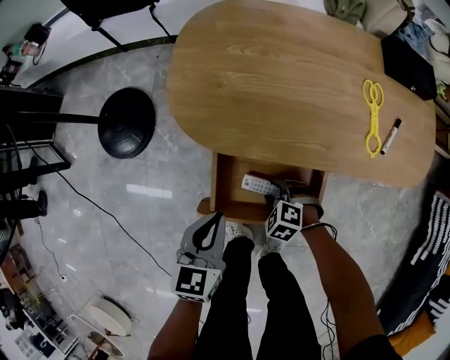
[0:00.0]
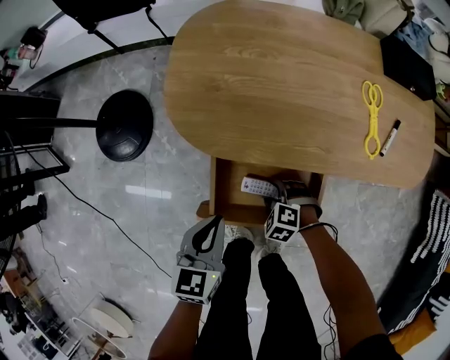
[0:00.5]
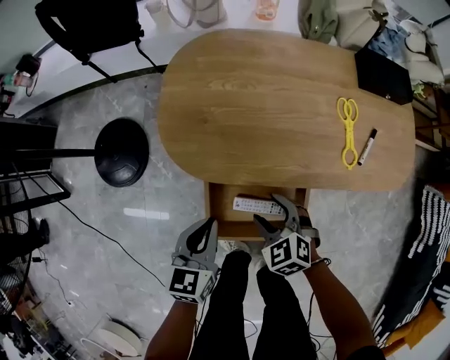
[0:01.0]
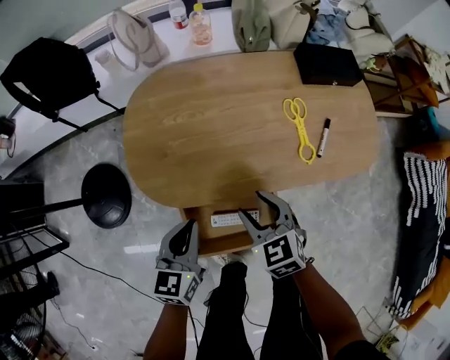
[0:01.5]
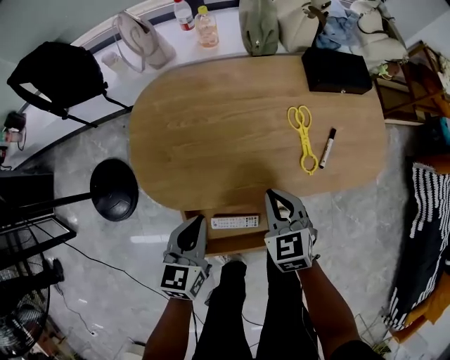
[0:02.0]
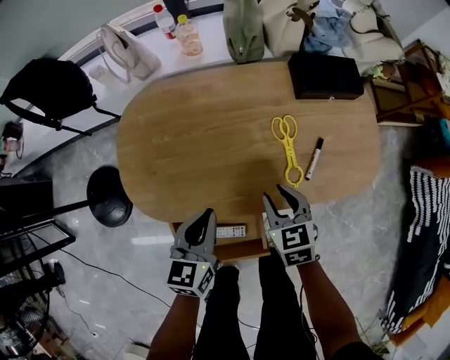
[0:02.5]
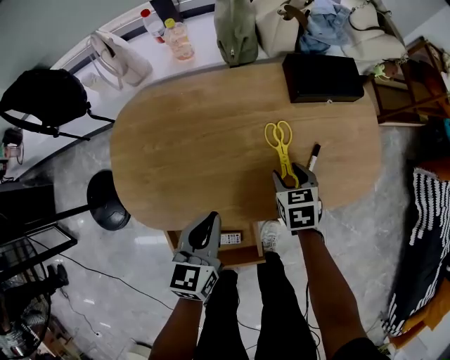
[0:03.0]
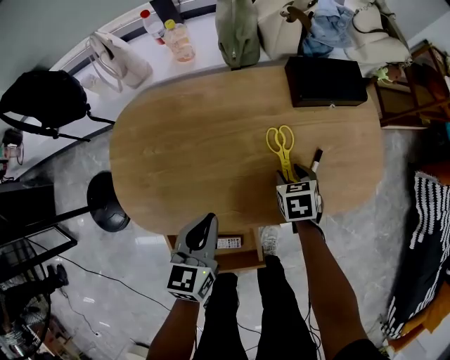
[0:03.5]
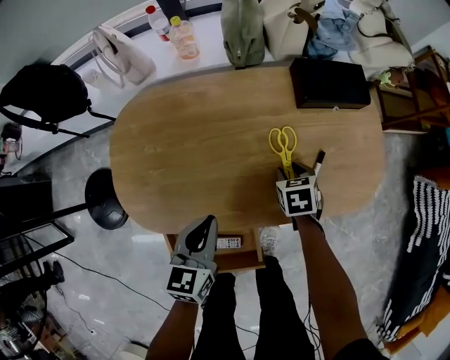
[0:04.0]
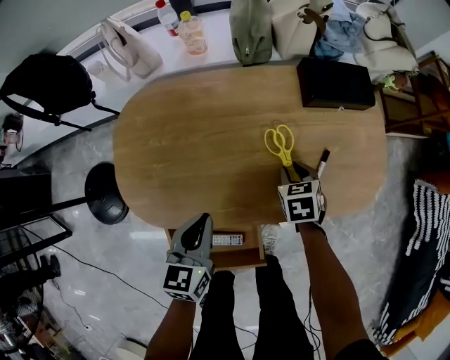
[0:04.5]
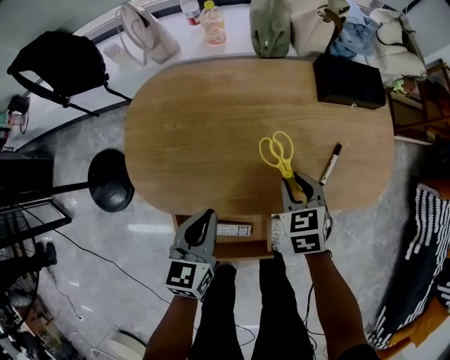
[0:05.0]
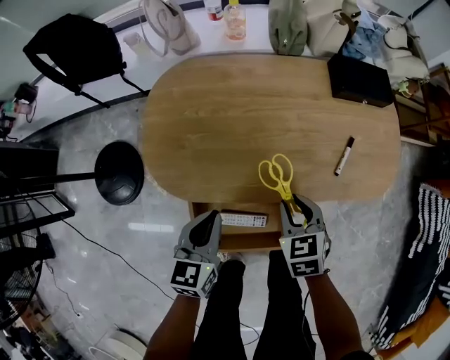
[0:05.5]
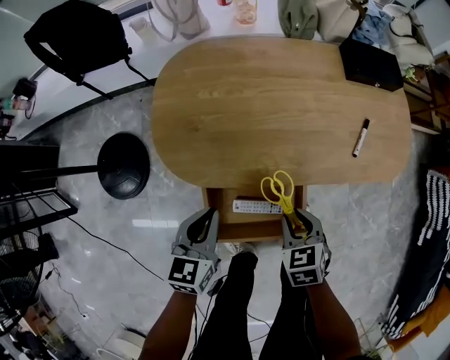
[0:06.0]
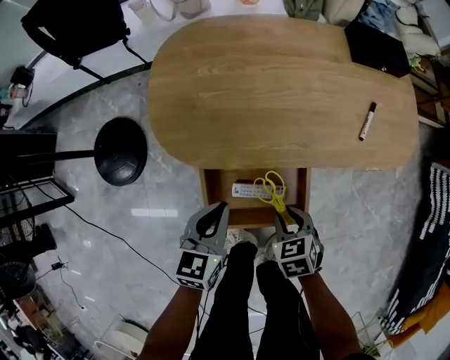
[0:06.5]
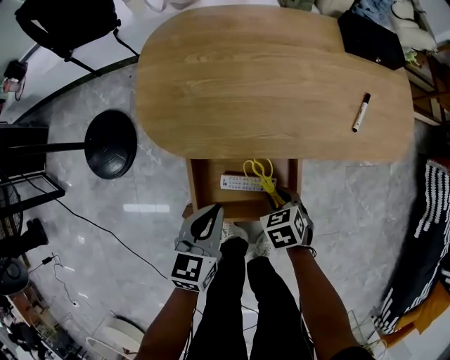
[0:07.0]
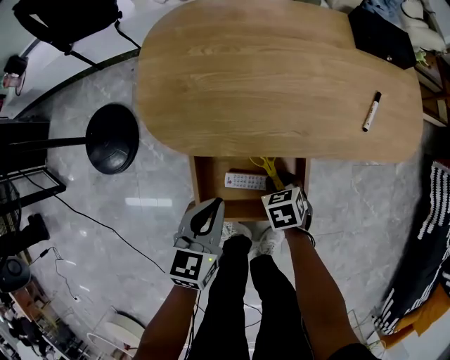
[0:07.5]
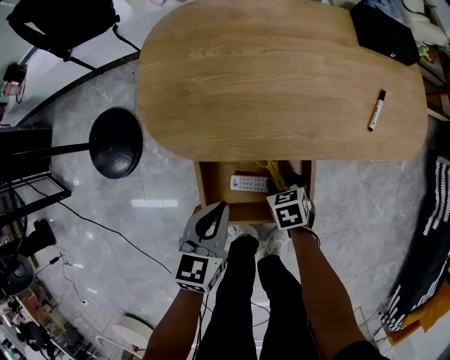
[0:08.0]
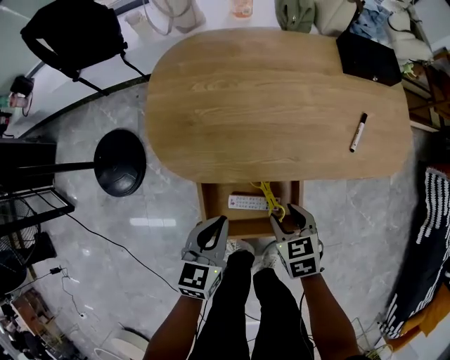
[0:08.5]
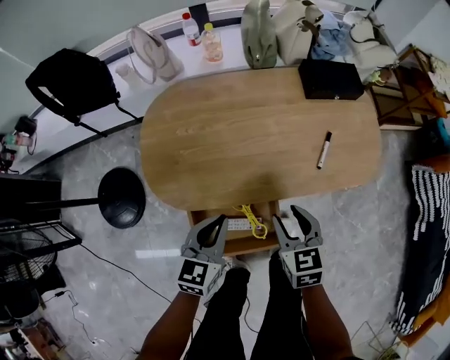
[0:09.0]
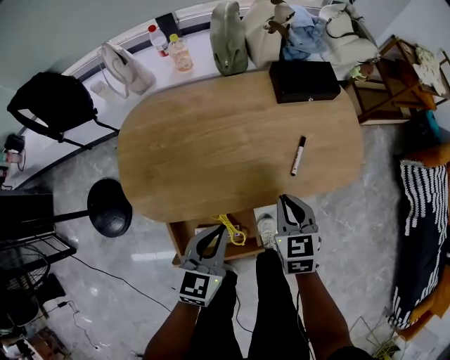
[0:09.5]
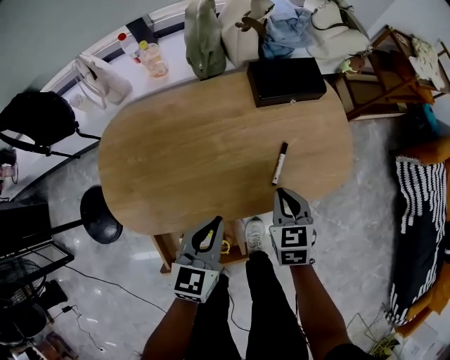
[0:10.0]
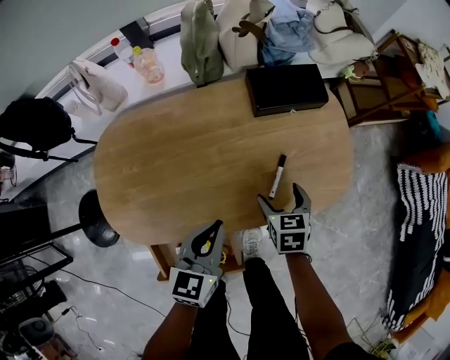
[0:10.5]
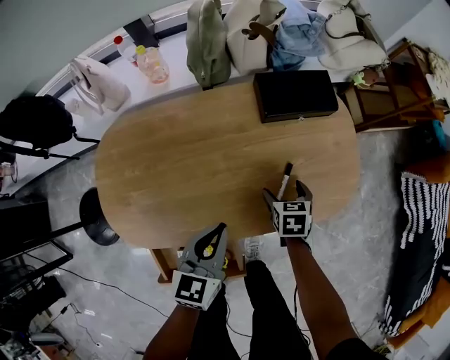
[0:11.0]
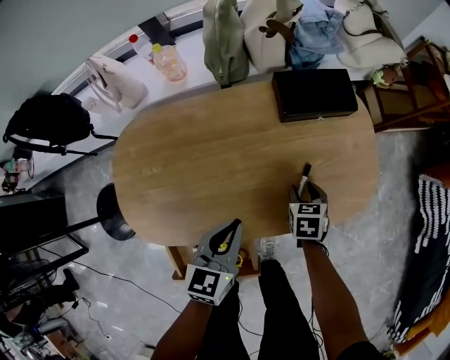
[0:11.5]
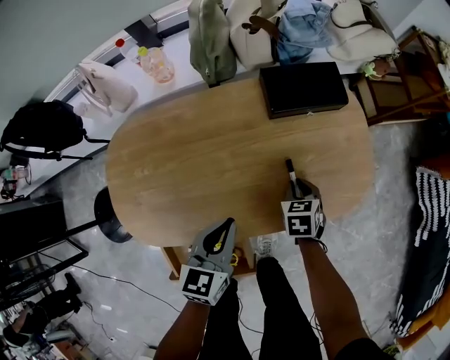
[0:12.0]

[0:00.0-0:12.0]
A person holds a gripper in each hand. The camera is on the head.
0:00.0 to 0:02.0: The left gripper shifts by roughly 20 cm. Meanwhile the right gripper heads upward, covering roughly 25 cm, tilts its fingers some 30 degrees upward, and closes.
0:02.0 to 0:04.0: The right gripper travels forward, to the right and downward by roughly 25 cm, and swivels about 30 degrees. Meanwhile the left gripper moves to the right and forward, approximately 15 cm.
0:04.0 to 0:06.0: The left gripper heads to the left and backward, covering roughly 20 cm. The right gripper moves backward and to the left, some 30 cm.
0:06.0 to 0:08.0: The right gripper heads downward, covering some 15 cm. The left gripper travels downward and backward by some 10 cm.
0:08.0 to 0:10.0: The right gripper heads upward, to the right and forward, covering about 40 cm, and rotates approximately 30 degrees; the left gripper travels to the right, forward and upward by roughly 30 cm.
0:10.0 to 0:12.0: The right gripper travels downward and forward by approximately 15 cm, and opens and closes again. The left gripper is displaced forward by some 5 cm.

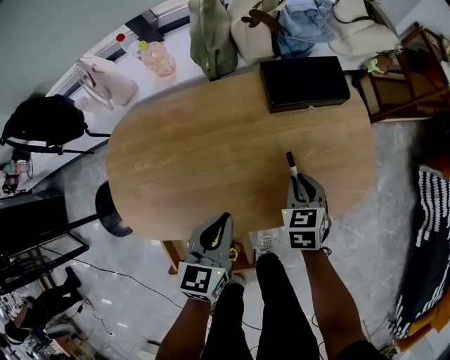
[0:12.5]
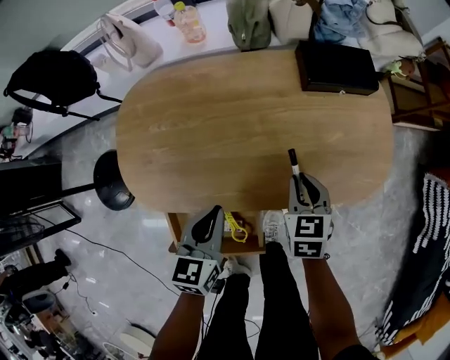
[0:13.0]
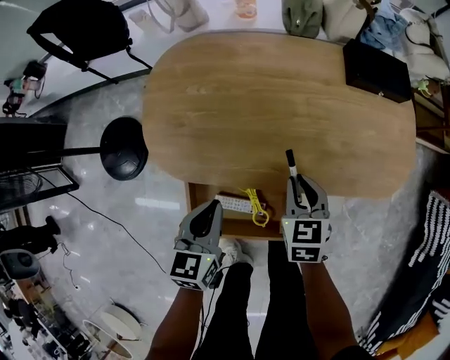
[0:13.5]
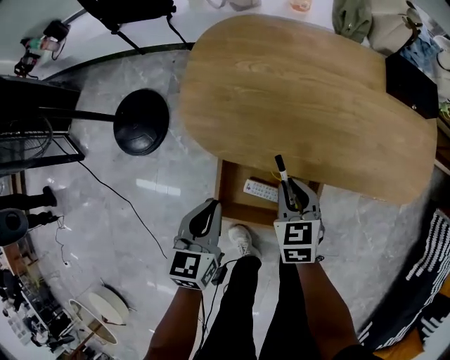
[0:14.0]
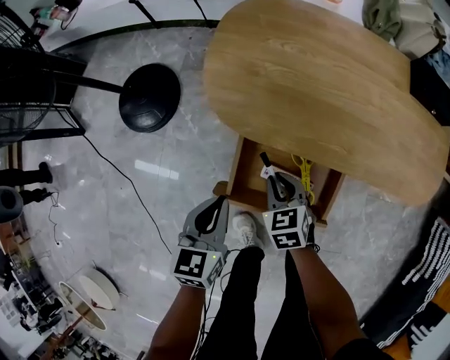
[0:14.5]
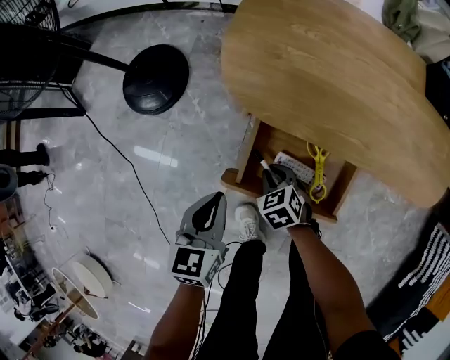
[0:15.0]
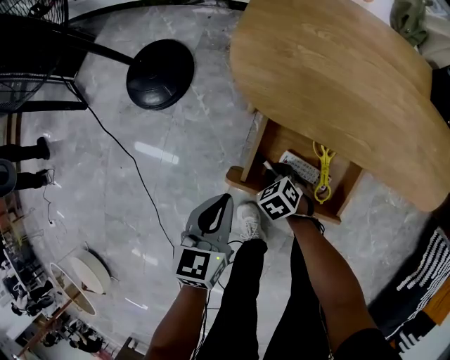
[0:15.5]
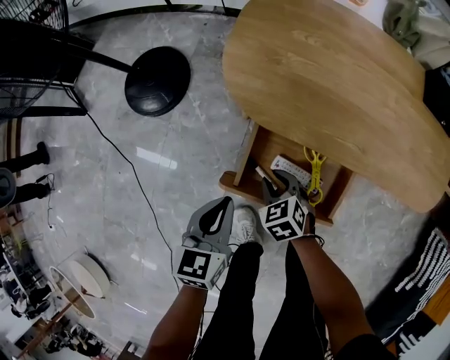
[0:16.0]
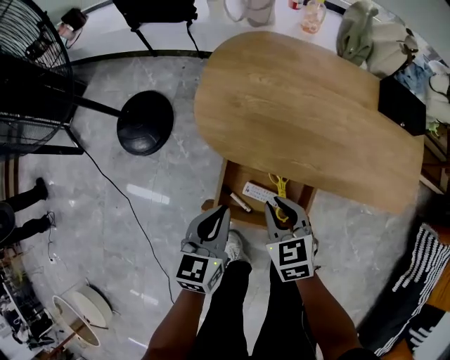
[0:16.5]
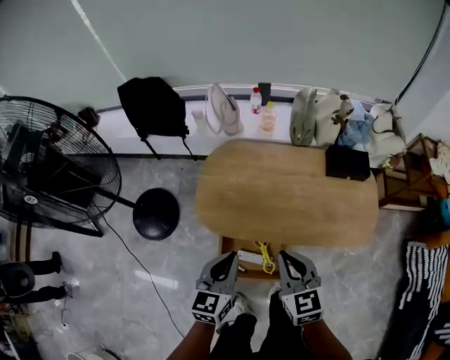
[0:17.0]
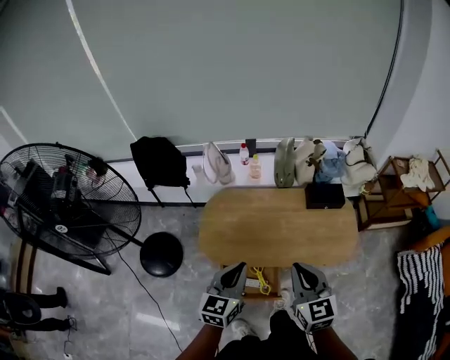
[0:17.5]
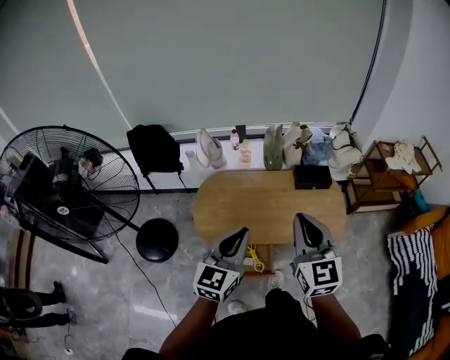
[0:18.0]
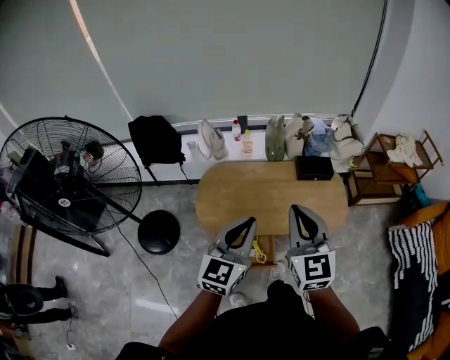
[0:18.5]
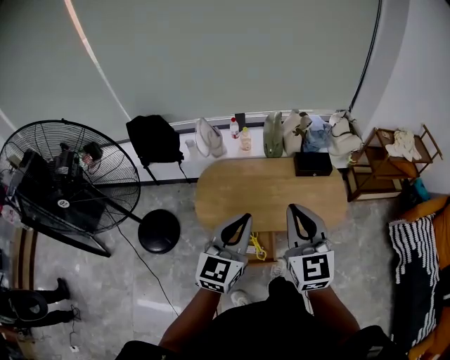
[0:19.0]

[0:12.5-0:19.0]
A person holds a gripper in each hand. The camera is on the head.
0:12.5 to 0:14.5: The two grippers travel together, about 50 cm. The right gripper swivels approximately 40 degrees; the left gripper turns by about 30 degrees.
0:14.5 to 0:17.0: The left gripper shifts some 30 cm upward and to the right. Meanwhile the right gripper is displaced upward by approximately 40 cm, and swivels approximately 30 degrees.
0:17.0 to 0:19.0: The two grippers go some 25 cm upward. The right gripper changes its angle by about 30 degrees; the left gripper rotates roughly 30 degrees.

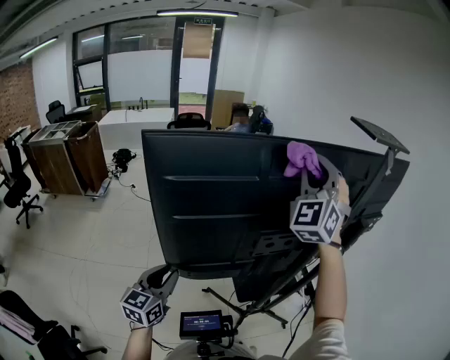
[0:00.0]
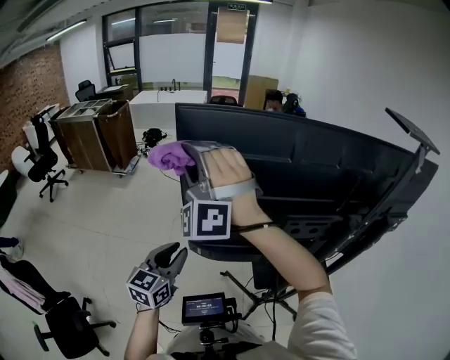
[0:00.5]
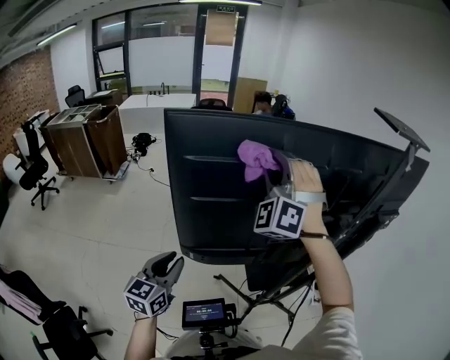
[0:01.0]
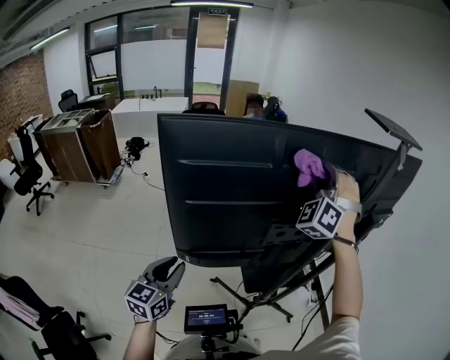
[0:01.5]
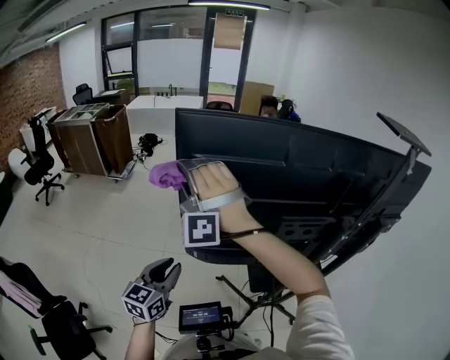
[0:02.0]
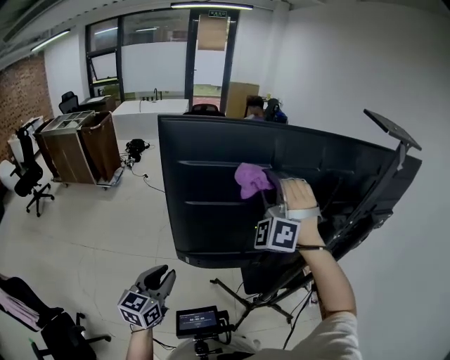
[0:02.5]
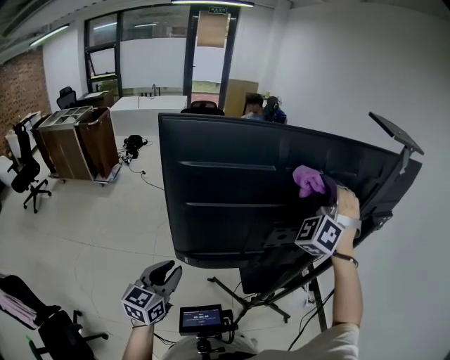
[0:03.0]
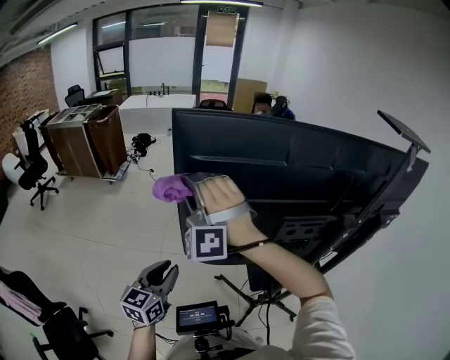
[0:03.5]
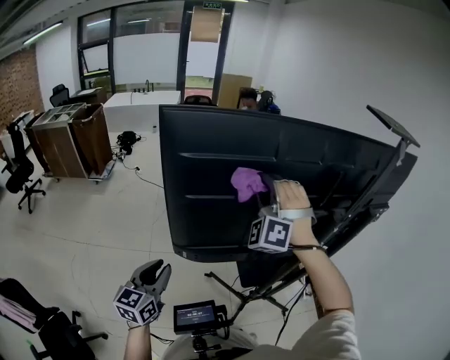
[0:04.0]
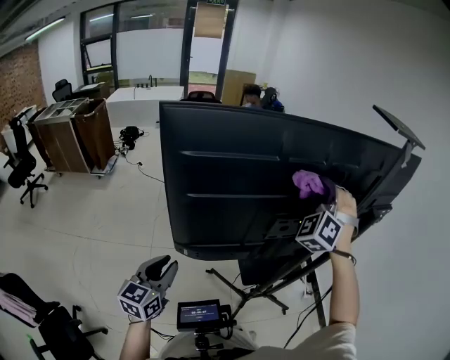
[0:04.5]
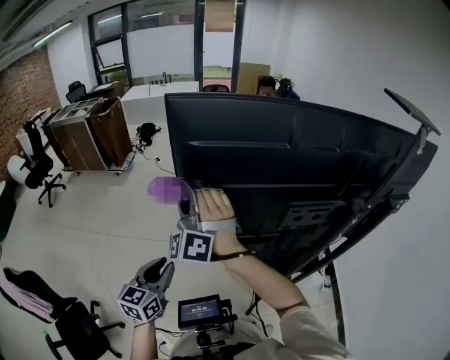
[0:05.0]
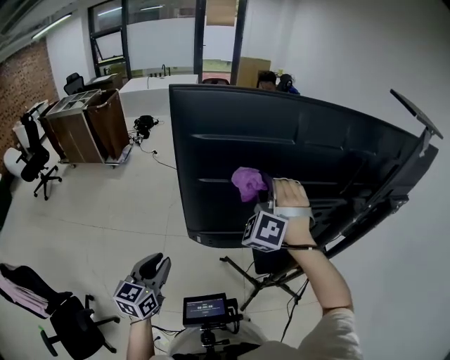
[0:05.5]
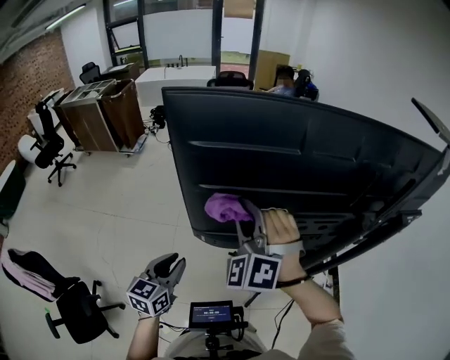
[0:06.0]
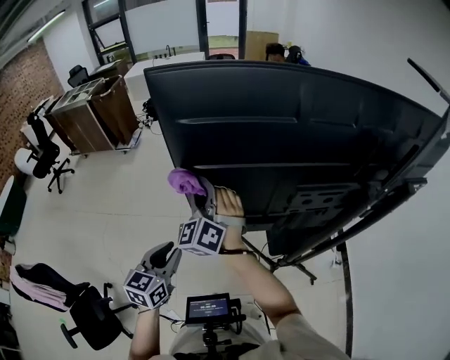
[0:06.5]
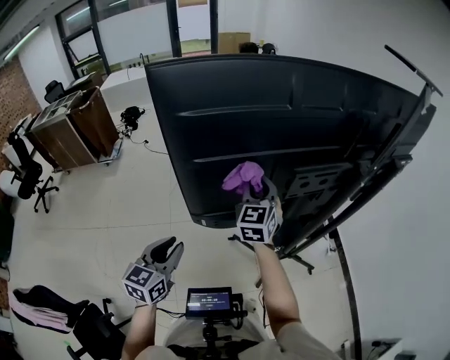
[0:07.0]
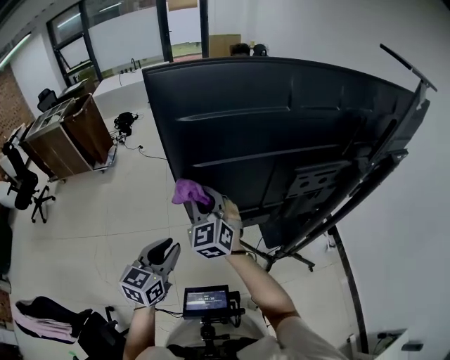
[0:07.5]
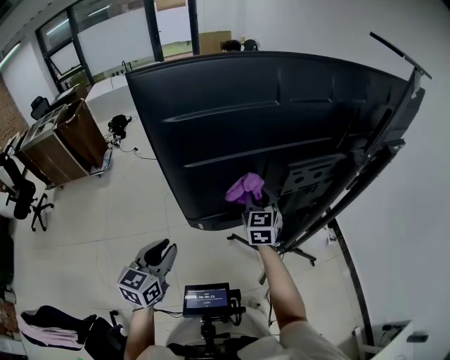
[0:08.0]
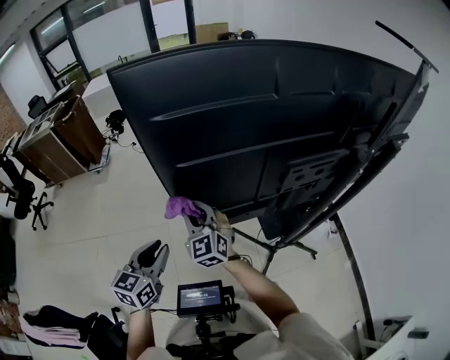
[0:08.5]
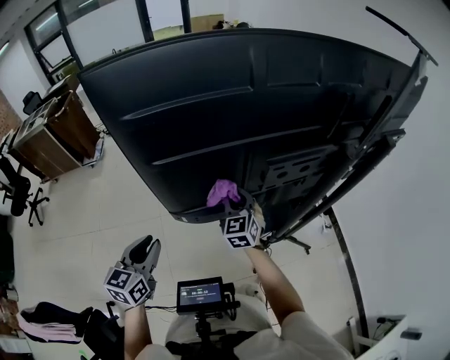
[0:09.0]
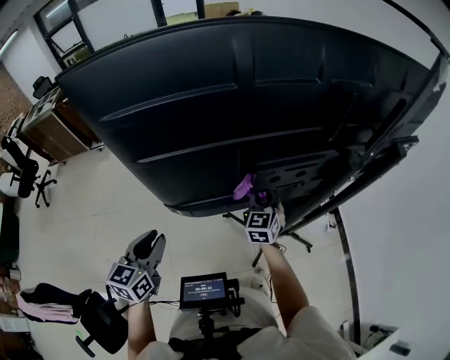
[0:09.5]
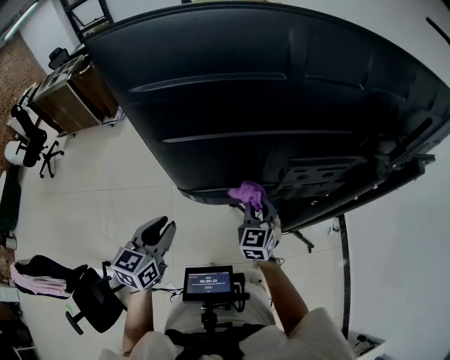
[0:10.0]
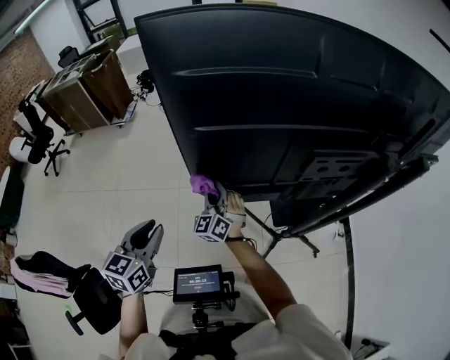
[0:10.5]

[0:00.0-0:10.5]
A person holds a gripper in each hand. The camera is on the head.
0:00.0 to 0:02.0: The left gripper shifts approximately 5 cm backward, while the right gripper moves left and right over approximately 40 cm, changing direction 2 times, and changes its angle by roughly 40 degrees.
0:02.0 to 0:04.0: The right gripper goes left and right, approximately 35 cm each way, reversing 2 times, and swivels roughly 30 degrees.
0:04.0 to 0:06.5: The right gripper swings left and right, about 35 cm each way, with 3 reversals, and turns by approximately 40 degrees.
0:06.5 to 0:08.5: The right gripper moves left and right over approximately 20 cm, changing direction 3 times, and changes its angle by roughly 20 degrees, while the left gripper shifts by approximately 5 cm.
0:08.5 to 0:10.5: The right gripper goes some 10 cm downward, moves about 30 cm to the right and comes back, and turns by roughly 20 degrees; the left gripper moves some 10 cm to the right and comes back.
